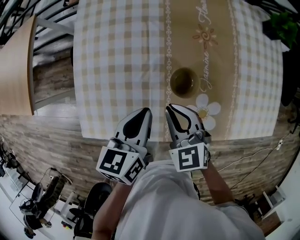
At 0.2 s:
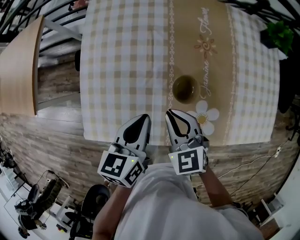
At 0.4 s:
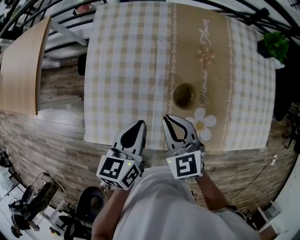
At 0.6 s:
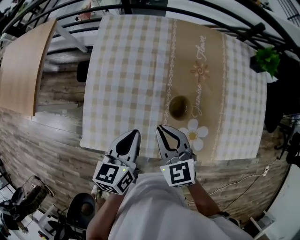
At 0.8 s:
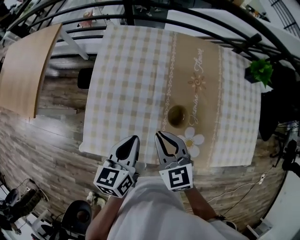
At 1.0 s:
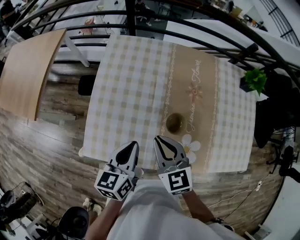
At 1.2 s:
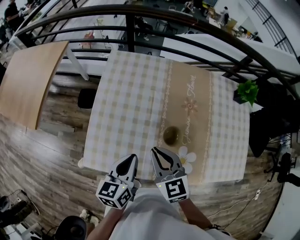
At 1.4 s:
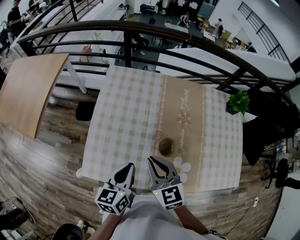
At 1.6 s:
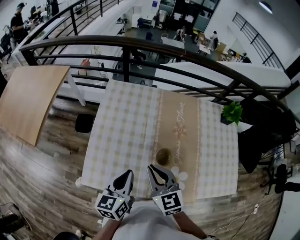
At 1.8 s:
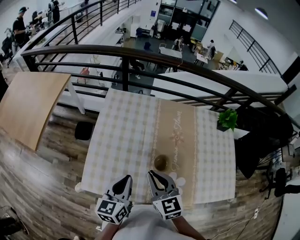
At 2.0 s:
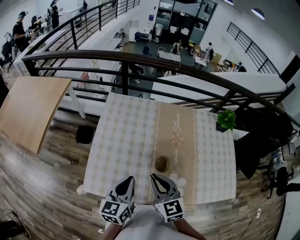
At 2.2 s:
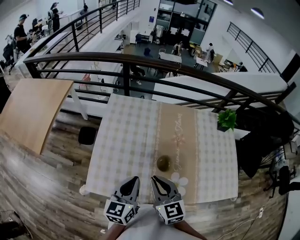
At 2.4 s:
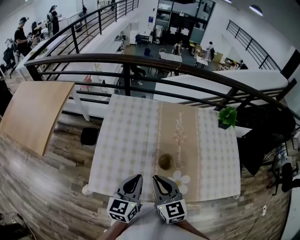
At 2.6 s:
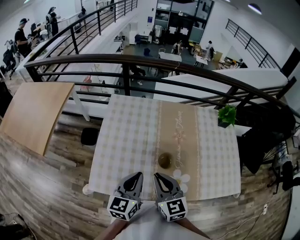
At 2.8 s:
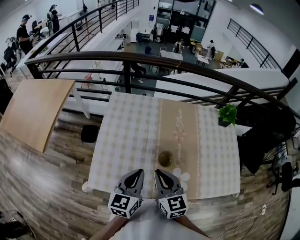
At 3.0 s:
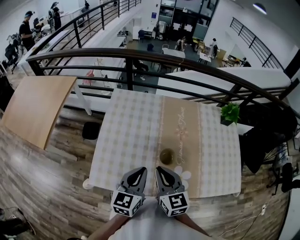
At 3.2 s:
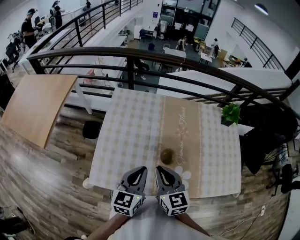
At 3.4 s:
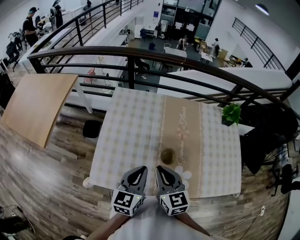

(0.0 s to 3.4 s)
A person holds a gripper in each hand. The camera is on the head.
0.0 s - 1.6 s: The left gripper shifts approximately 15 cm upward and to the left. The right gripper moves upward, some 20 cm.
1.6 s - 3.4 s: The left gripper changes place by approximately 5 cm.

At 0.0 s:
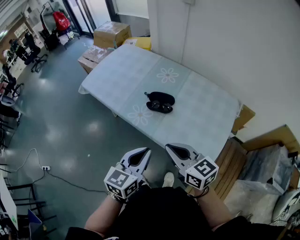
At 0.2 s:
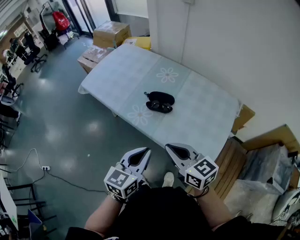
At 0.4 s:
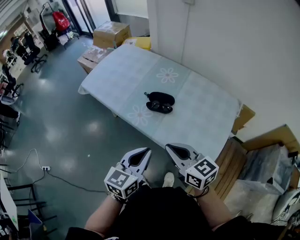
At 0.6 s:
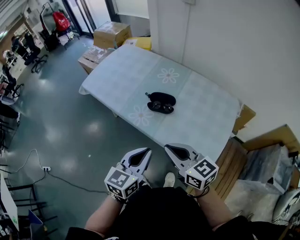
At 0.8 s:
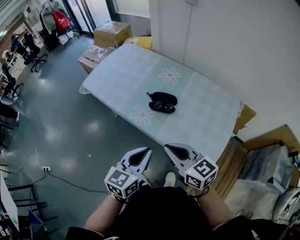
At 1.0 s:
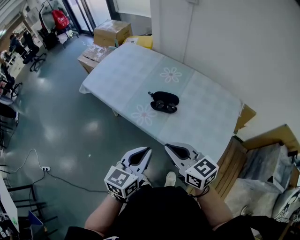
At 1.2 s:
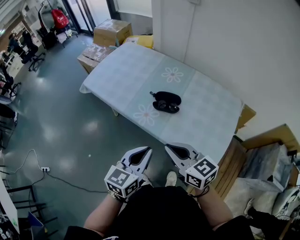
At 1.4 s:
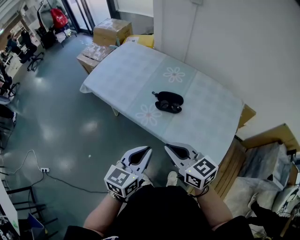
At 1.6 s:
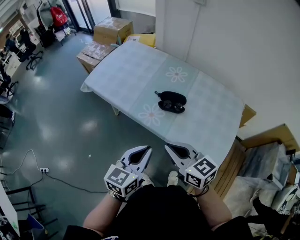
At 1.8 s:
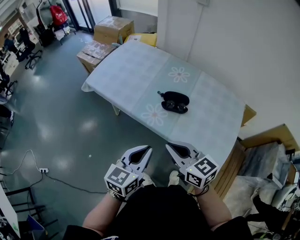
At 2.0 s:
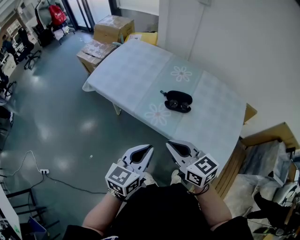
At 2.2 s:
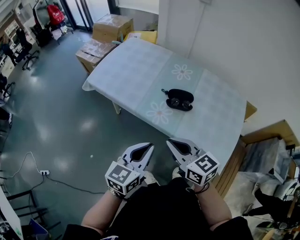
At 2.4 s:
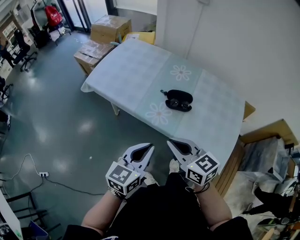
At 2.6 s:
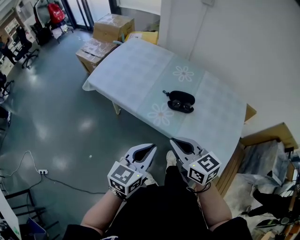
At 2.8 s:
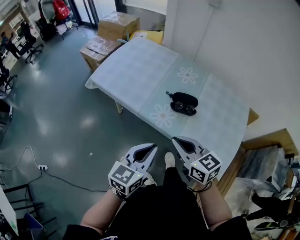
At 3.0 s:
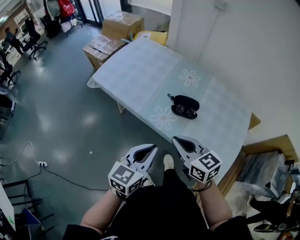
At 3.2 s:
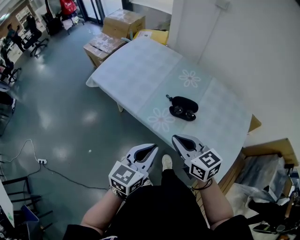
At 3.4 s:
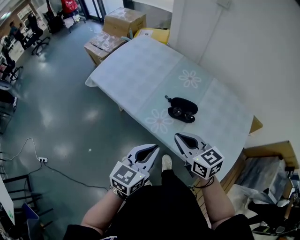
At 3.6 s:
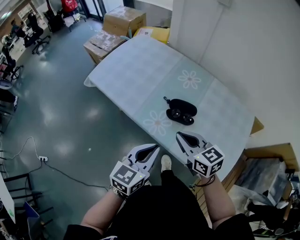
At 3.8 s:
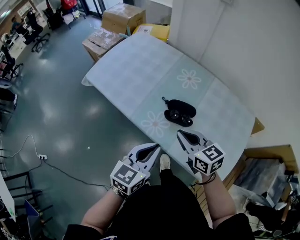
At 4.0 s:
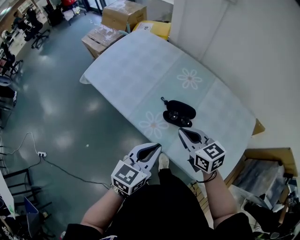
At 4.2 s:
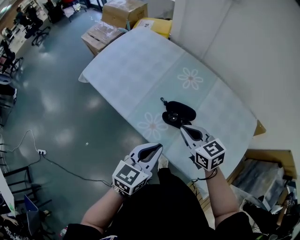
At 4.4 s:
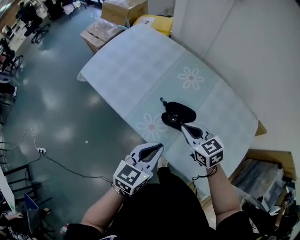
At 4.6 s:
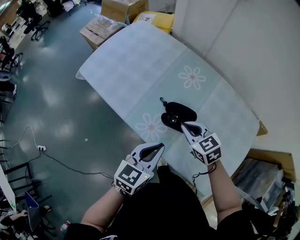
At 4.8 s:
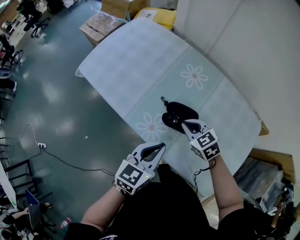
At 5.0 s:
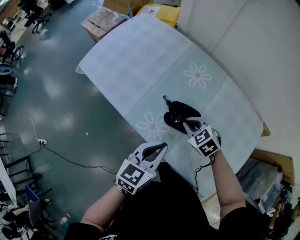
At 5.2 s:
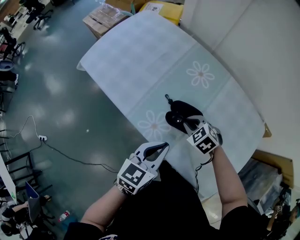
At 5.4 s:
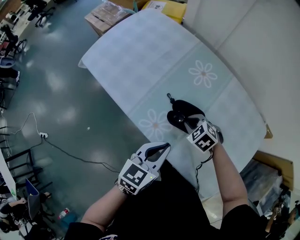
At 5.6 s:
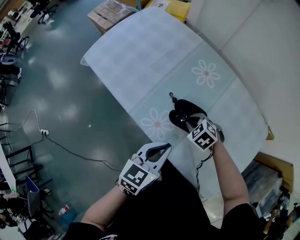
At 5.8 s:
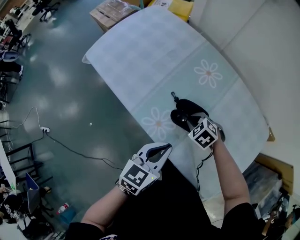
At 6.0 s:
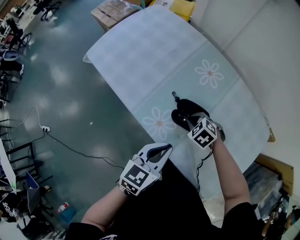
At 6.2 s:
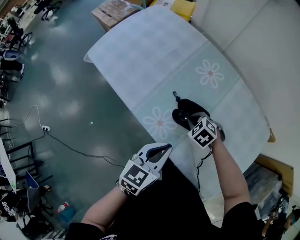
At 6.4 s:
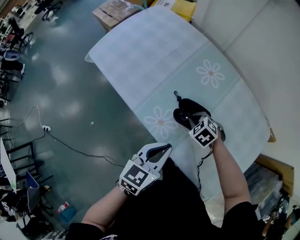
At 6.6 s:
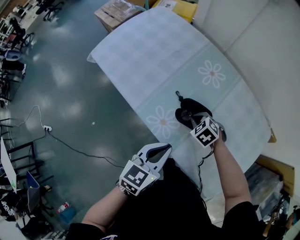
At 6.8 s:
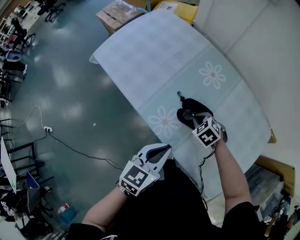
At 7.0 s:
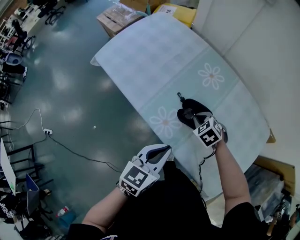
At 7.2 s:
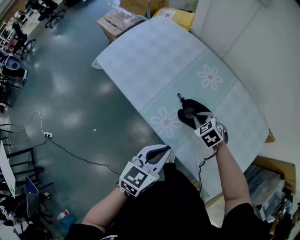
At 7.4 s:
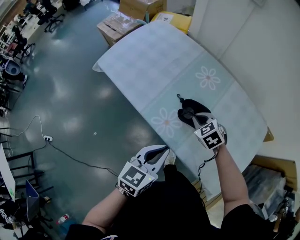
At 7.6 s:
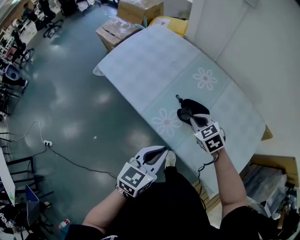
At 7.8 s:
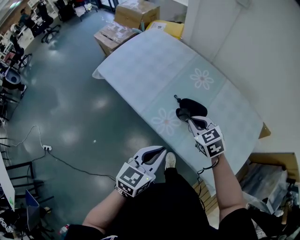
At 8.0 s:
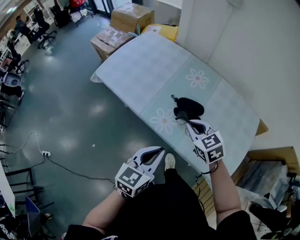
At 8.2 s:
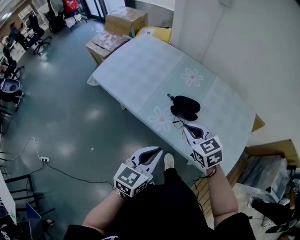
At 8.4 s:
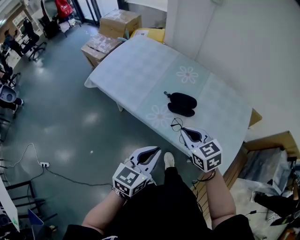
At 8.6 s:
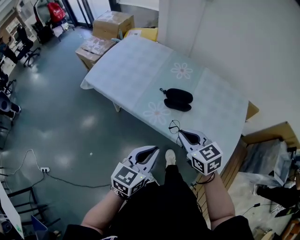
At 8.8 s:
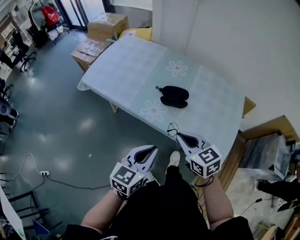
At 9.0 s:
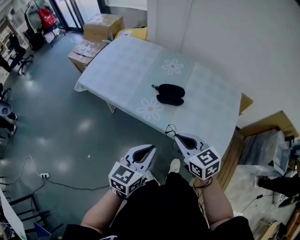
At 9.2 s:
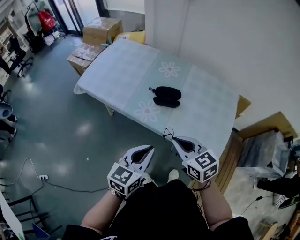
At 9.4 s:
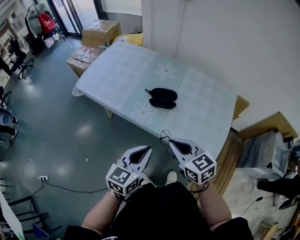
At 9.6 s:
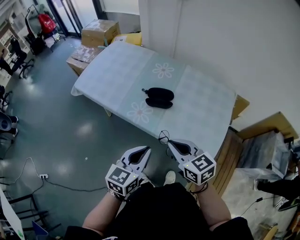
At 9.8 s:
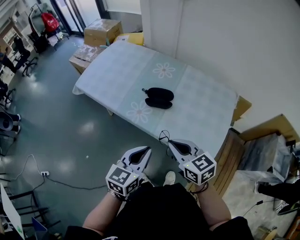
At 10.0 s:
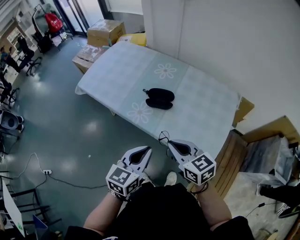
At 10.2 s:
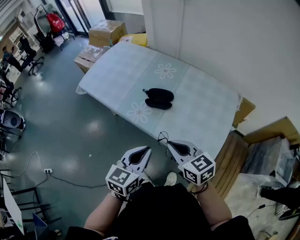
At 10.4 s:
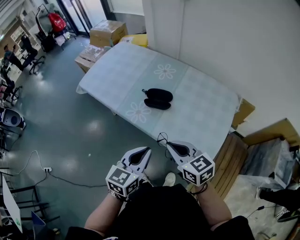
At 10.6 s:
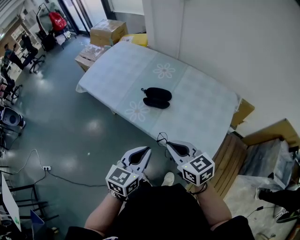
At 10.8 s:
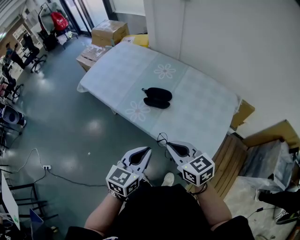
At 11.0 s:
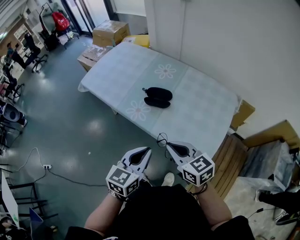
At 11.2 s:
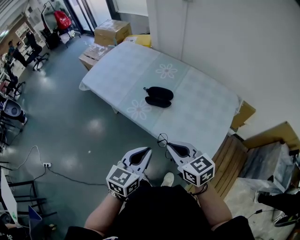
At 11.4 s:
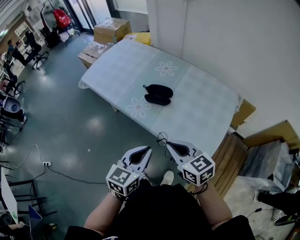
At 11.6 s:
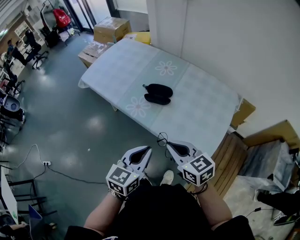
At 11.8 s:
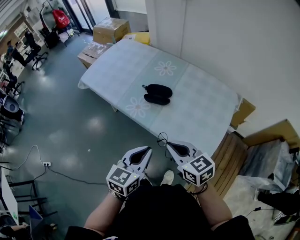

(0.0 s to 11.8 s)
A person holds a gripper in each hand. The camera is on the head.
0.0 s - 1.4 s: Both grippers move to the left, some 5 cm.
1.4 s - 3.0 s: The left gripper heads to the left, covering about 5 cm. Meanwhile the right gripper travels forward and to the left by some 10 cm.
3.0 s - 4.4 s: The left gripper moves forward and to the right, roughly 15 cm. The right gripper goes approximately 20 cm forward, to the right and downward.
4.4 s - 6.0 s: The right gripper travels downward by about 15 cm, and points its fingers about 40 degrees further downward.
6.0 s - 7.4 s: The left gripper is displaced backward by about 5 cm. The right gripper goes approximately 10 cm upward.
7.4 s - 8.8 s: The right gripper heads backward and upward, covering roughly 25 cm, and changes its angle by roughly 40 degrees. The left gripper heads backward, covering about 10 cm.
8.8 s - 10.4 s: Both grippers travel together to the right, roughly 10 cm.
10.4 s - 11.8 s: There are only small adjustments of the grippers.

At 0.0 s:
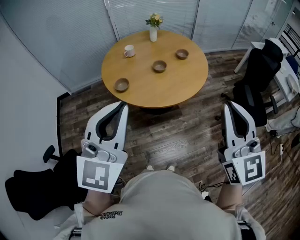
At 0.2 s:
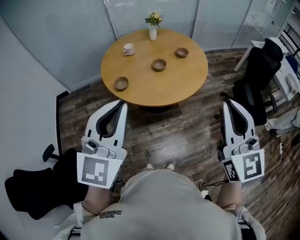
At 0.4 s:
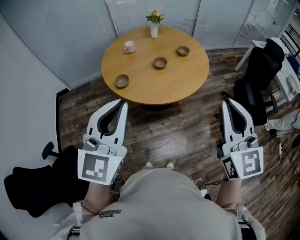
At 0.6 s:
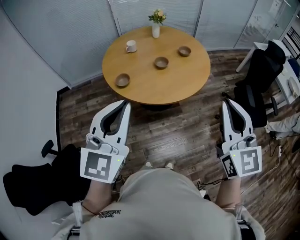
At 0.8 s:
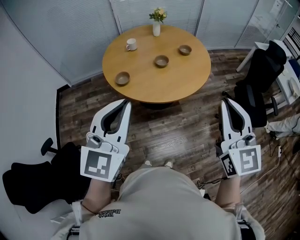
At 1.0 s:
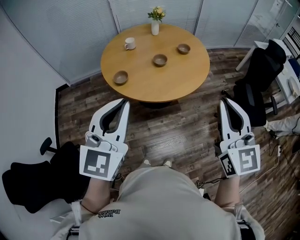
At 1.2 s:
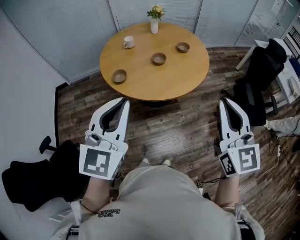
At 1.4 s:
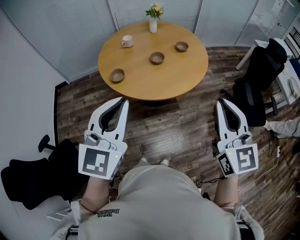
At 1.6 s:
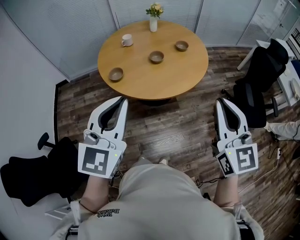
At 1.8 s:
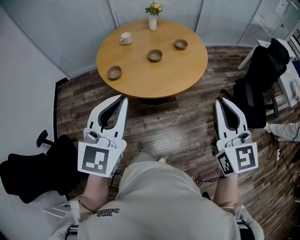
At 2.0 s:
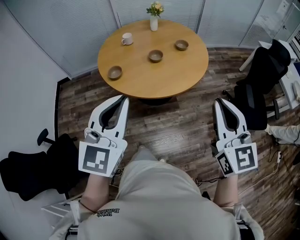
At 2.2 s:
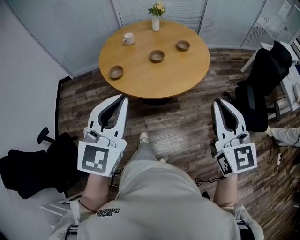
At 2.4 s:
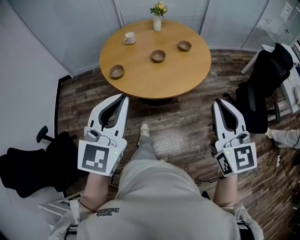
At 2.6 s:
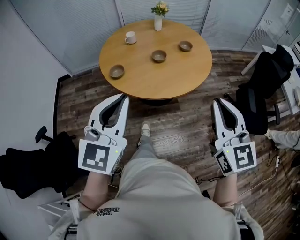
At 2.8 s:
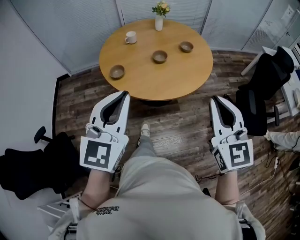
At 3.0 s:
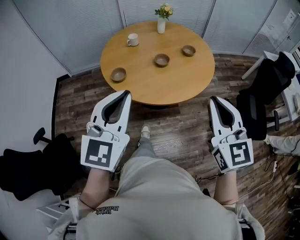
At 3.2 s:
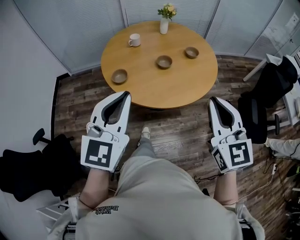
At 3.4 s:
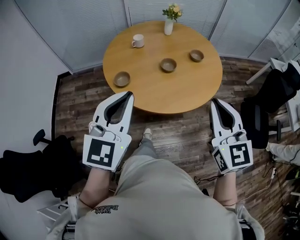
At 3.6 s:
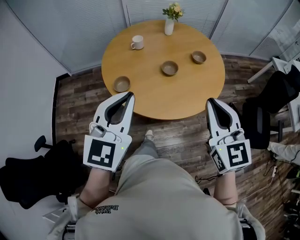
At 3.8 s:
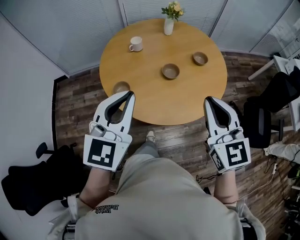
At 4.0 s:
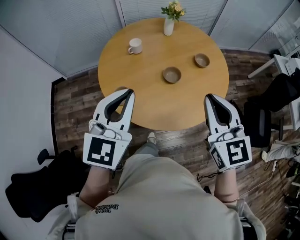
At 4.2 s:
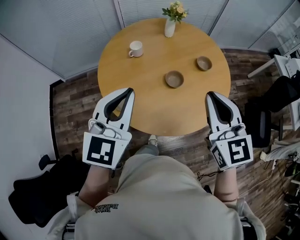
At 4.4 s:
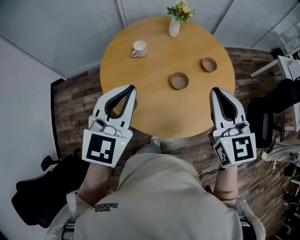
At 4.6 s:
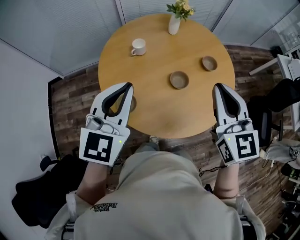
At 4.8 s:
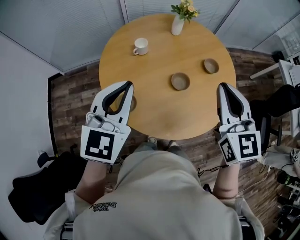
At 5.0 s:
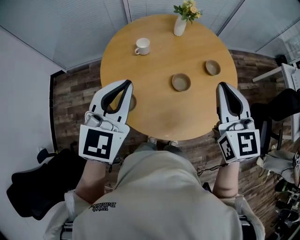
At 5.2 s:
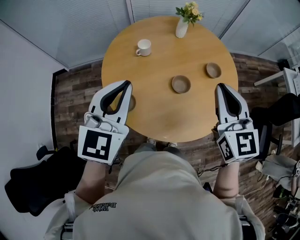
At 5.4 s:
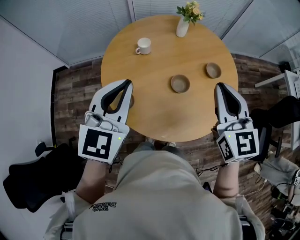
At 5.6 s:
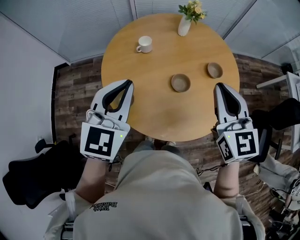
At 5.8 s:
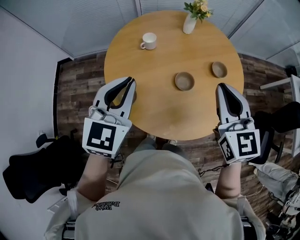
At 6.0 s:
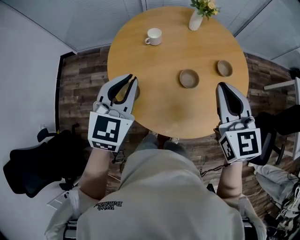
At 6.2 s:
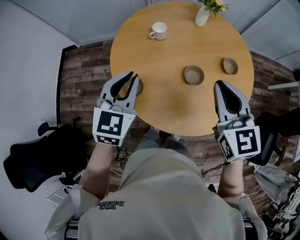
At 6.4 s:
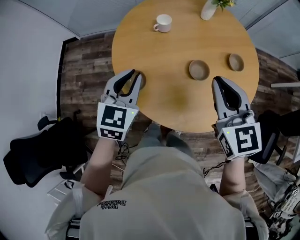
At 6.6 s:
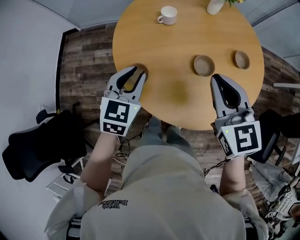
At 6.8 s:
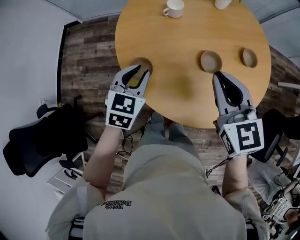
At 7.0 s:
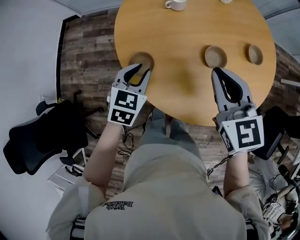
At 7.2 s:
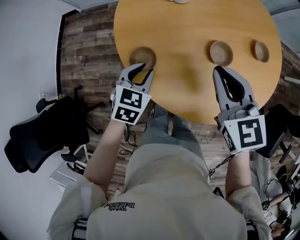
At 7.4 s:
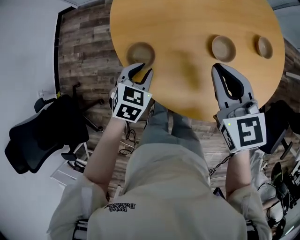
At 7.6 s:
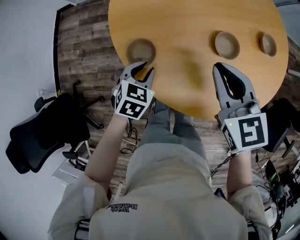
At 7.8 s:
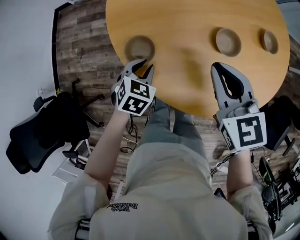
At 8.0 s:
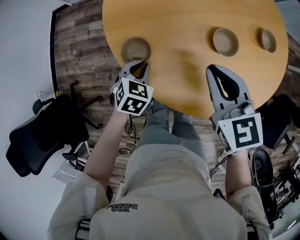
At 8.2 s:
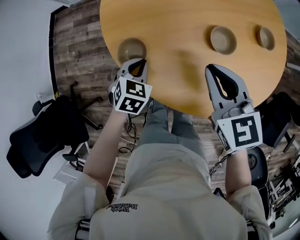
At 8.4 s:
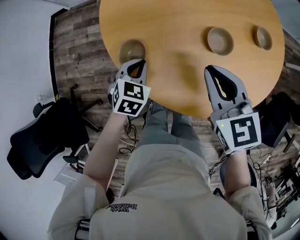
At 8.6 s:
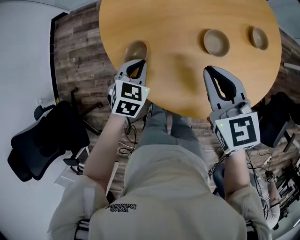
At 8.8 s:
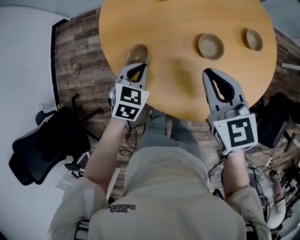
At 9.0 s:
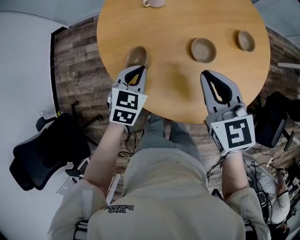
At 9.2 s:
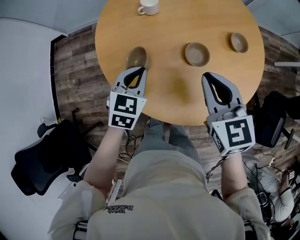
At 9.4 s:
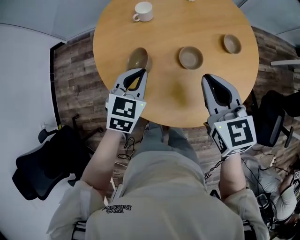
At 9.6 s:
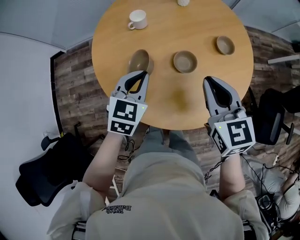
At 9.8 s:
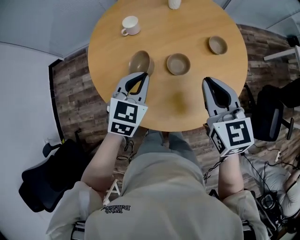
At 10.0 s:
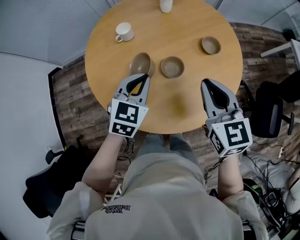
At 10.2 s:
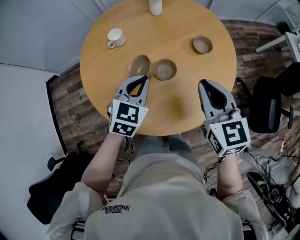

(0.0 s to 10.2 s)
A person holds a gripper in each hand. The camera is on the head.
0.0 s - 1.4 s: Both grippers travel together downward, some 5 cm.
1.4 s - 3.0 s: The grippers both shift forward by roughly 5 cm.
3.0 s - 4.4 s: The right gripper heads forward and to the left, covering some 35 cm. Meanwhile the left gripper travels forward by some 30 cm.
4.4 s - 5.8 s: The right gripper is displaced forward by approximately 5 cm.
5.8 s - 7.2 s: The right gripper shifts some 20 cm downward and to the left, and changes its angle by about 20 degrees, while the left gripper is displaced downward by roughly 30 cm, and turns by roughly 30 degrees.
8.8 s - 10.2 s: The grippers both shift to the right and upward by about 20 cm. The left gripper changes its angle by about 20 degrees. The right gripper swivels approximately 20 degrees.
